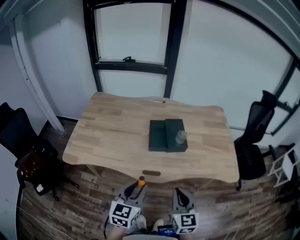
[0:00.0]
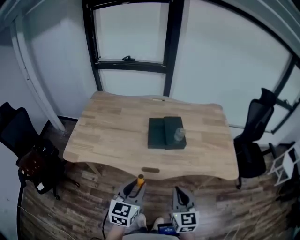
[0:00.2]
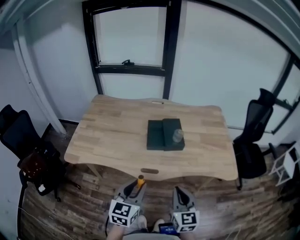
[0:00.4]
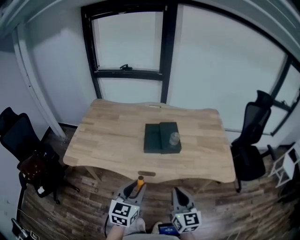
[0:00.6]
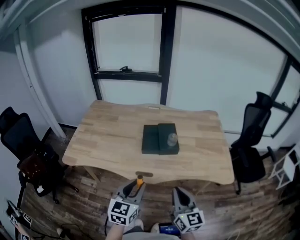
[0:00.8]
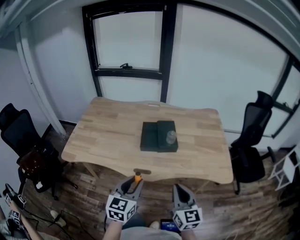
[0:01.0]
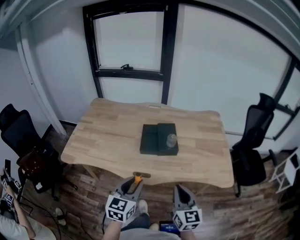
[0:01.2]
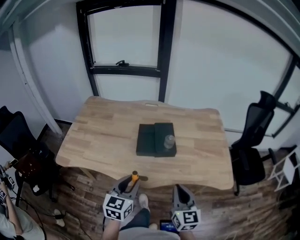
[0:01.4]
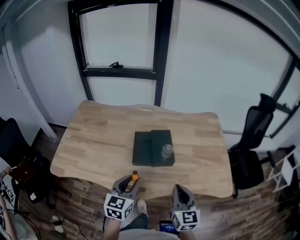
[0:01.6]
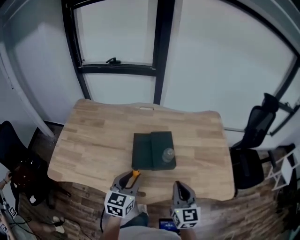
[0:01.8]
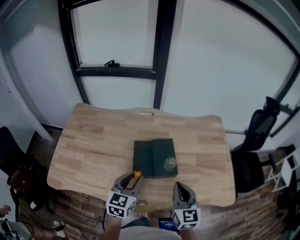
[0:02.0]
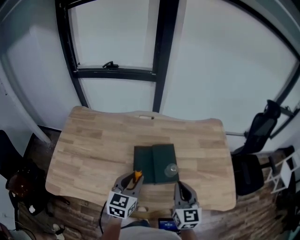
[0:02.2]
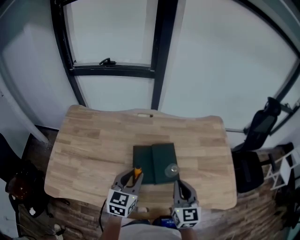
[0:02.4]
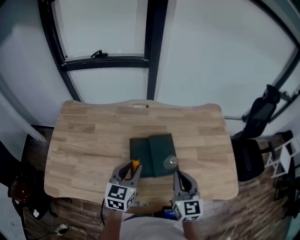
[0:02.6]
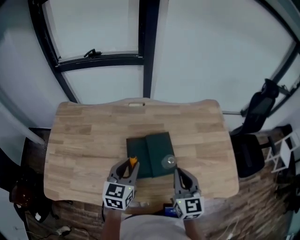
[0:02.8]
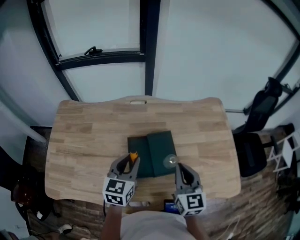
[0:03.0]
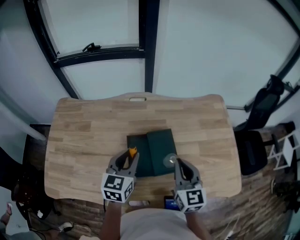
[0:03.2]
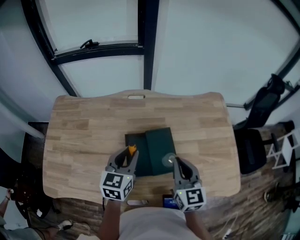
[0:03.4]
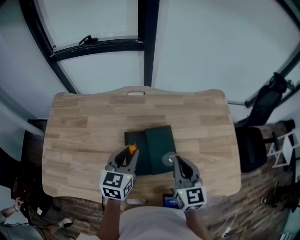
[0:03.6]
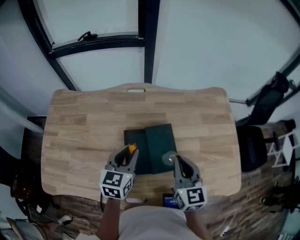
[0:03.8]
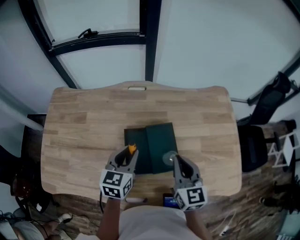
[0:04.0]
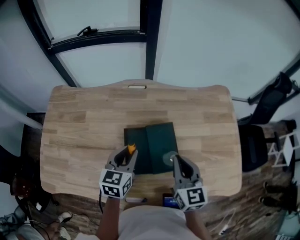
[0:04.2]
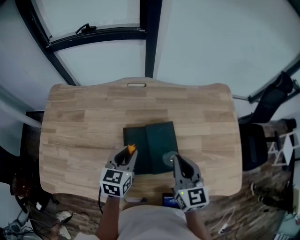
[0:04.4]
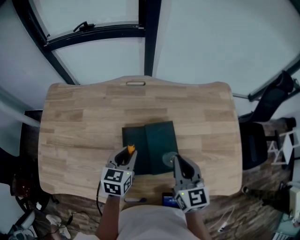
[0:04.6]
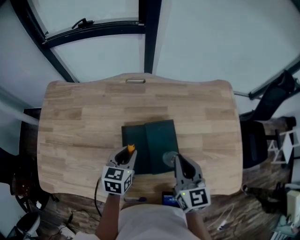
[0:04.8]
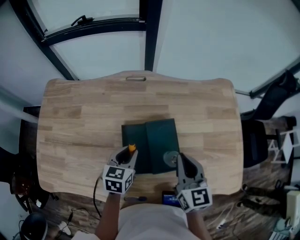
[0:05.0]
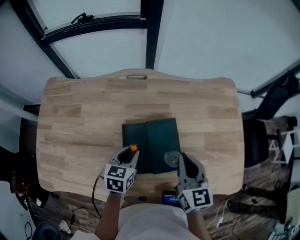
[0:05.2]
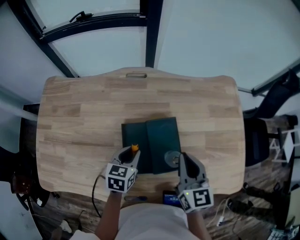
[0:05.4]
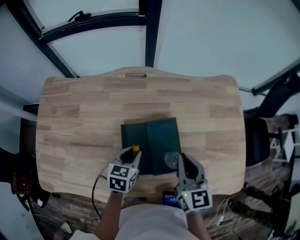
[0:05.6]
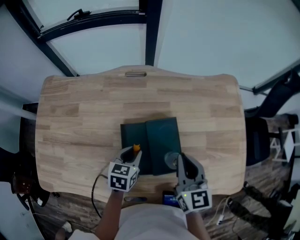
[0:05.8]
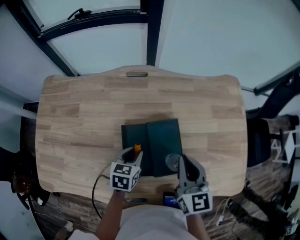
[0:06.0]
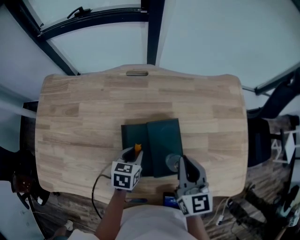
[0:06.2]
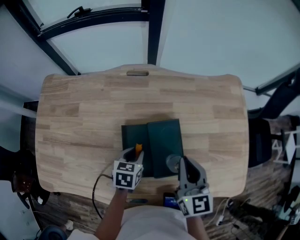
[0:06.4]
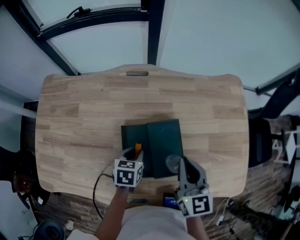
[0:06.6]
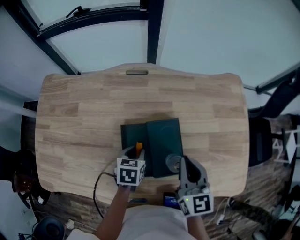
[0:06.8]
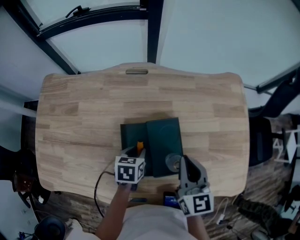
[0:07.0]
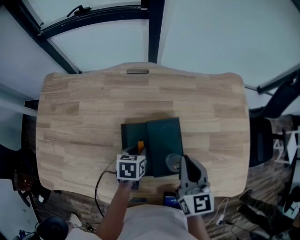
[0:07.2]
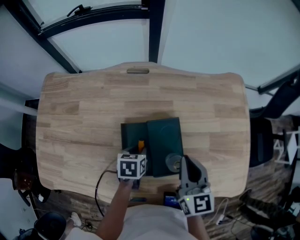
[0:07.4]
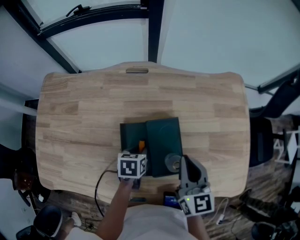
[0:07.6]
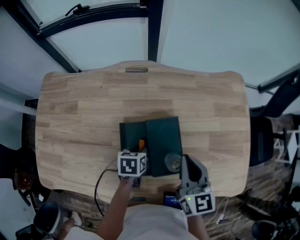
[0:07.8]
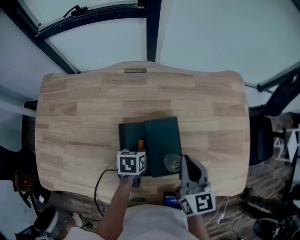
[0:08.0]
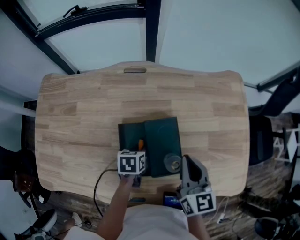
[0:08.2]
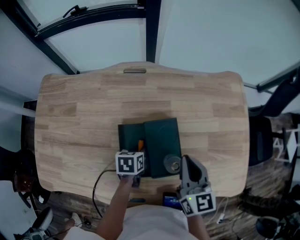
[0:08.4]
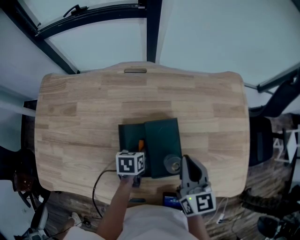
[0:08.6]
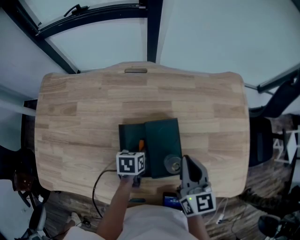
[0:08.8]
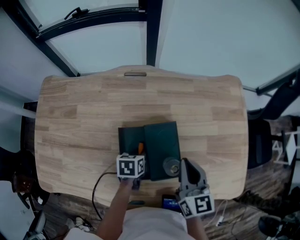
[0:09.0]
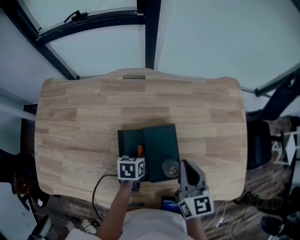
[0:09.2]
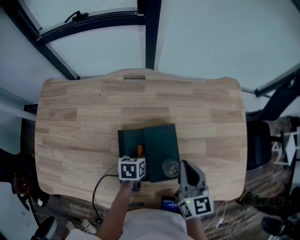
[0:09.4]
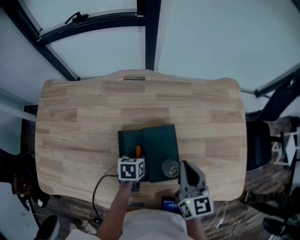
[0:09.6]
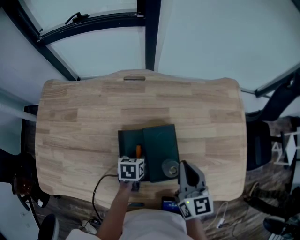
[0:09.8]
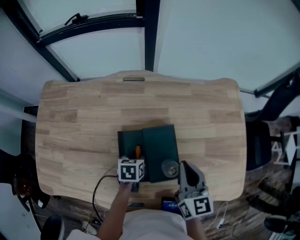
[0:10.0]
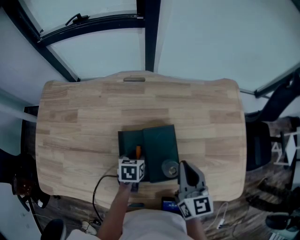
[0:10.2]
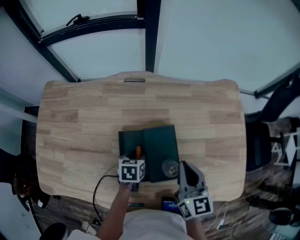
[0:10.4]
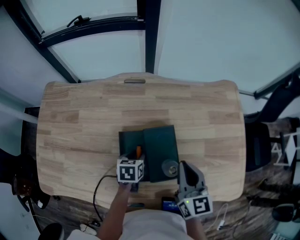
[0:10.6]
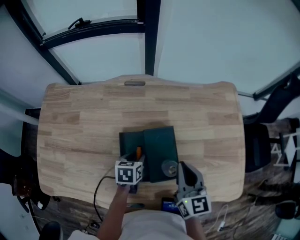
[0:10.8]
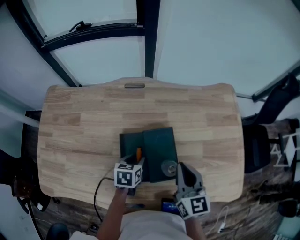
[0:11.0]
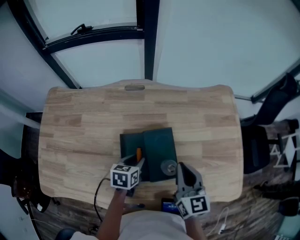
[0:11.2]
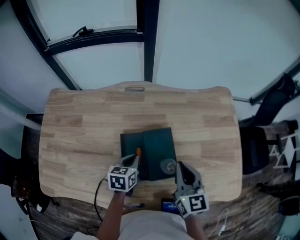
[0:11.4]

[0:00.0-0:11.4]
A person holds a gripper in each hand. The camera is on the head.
0:00.0 to 0:01.4: The right gripper travels to the right and forward by approximately 10 cm; the left gripper travels forward and to the right by approximately 10 cm.
0:01.4 to 0:02.8: The two grippers go some 25 cm forward.
0:02.8 to 0:04.2: The left gripper shifts about 10 cm downward and forward. The right gripper travels forward by about 5 cm.
0:04.2 to 0:05.6: The left gripper goes about 10 cm downward.
0:05.6 to 0:07.2: The left gripper shifts by approximately 5 cm, and swivels some 20 degrees.
0:07.2 to 0:10.0: The grippers stay close to where they were, moving slightly.
0:10.0 to 0:11.4: The left gripper is displaced upward by some 10 cm, and closes.

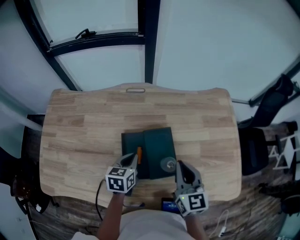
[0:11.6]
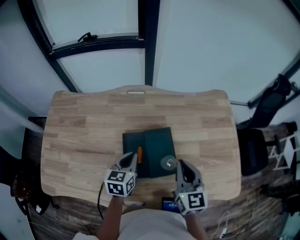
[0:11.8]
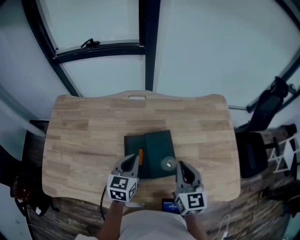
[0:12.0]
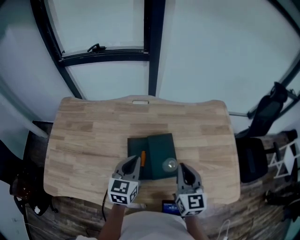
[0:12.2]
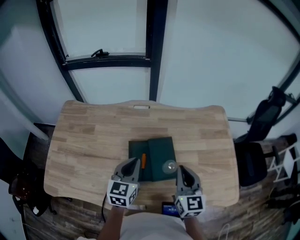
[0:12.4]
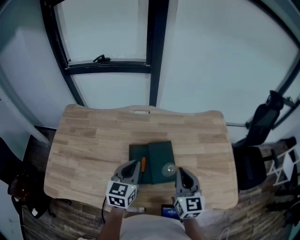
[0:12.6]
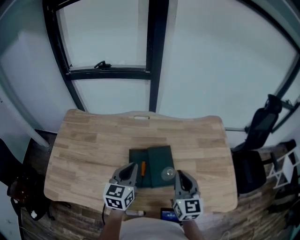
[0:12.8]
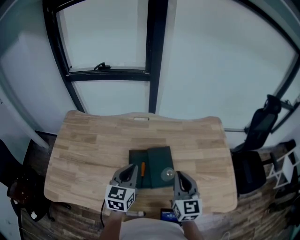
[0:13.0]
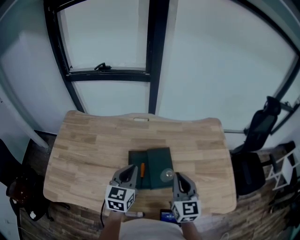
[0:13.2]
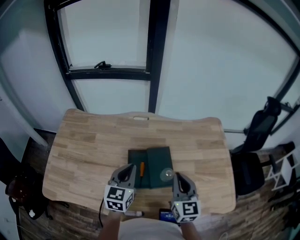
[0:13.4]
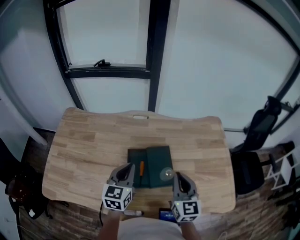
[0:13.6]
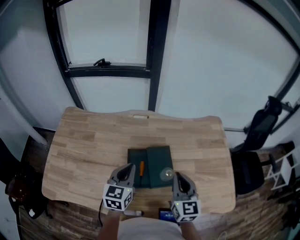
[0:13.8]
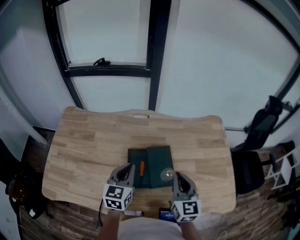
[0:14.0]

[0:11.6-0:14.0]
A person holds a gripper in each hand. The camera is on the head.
0:11.6 to 0:12.8: The right gripper ends up about 5 cm from where it was. Meanwhile the left gripper moves upward, approximately 15 cm, and turns by about 30 degrees.
0:12.8 to 0:14.0: The grippers make only small movements.

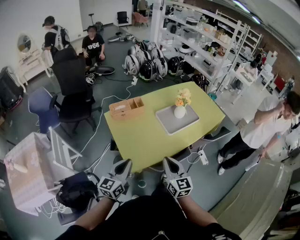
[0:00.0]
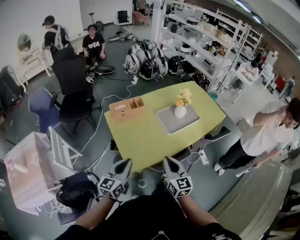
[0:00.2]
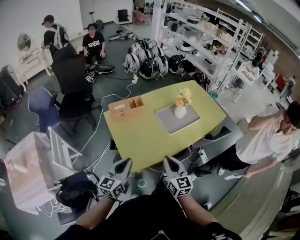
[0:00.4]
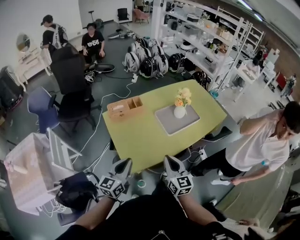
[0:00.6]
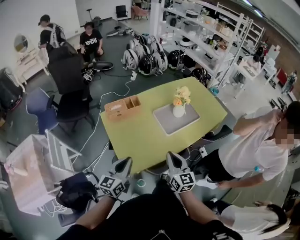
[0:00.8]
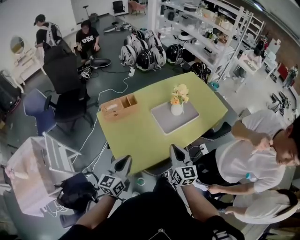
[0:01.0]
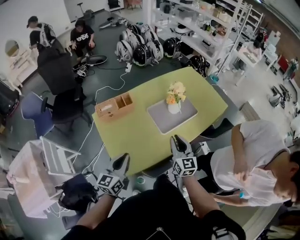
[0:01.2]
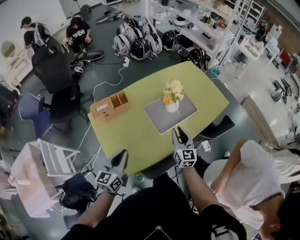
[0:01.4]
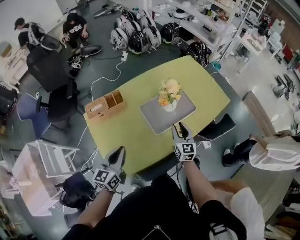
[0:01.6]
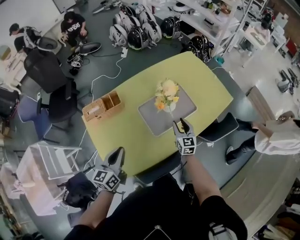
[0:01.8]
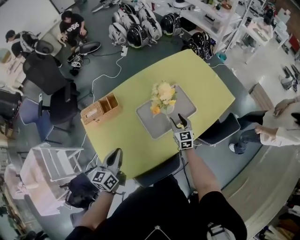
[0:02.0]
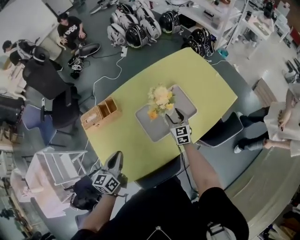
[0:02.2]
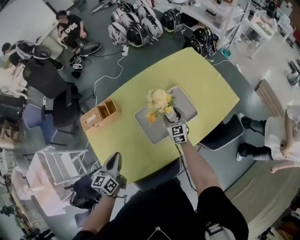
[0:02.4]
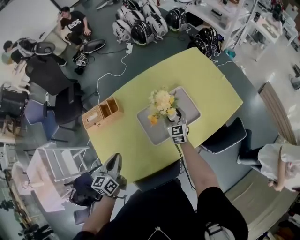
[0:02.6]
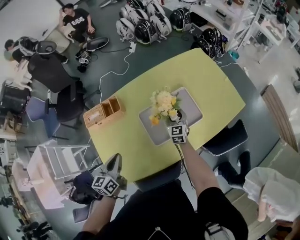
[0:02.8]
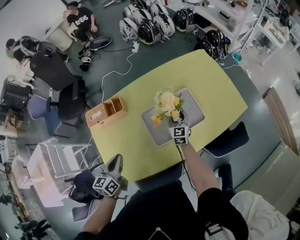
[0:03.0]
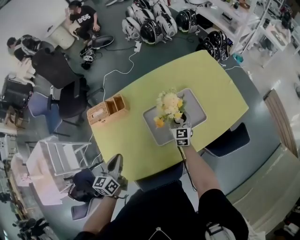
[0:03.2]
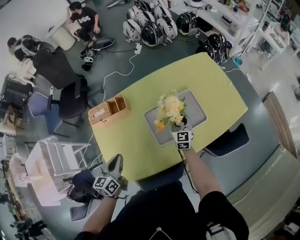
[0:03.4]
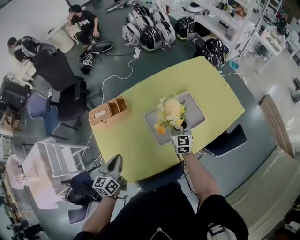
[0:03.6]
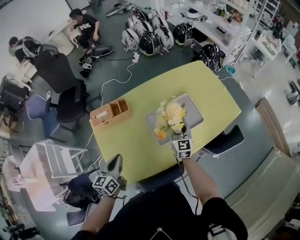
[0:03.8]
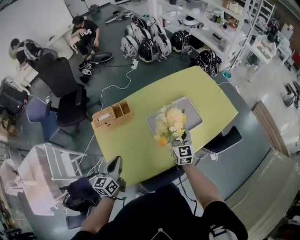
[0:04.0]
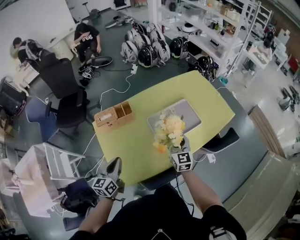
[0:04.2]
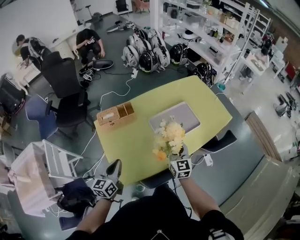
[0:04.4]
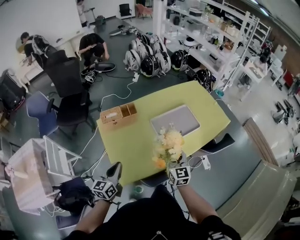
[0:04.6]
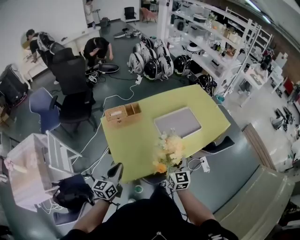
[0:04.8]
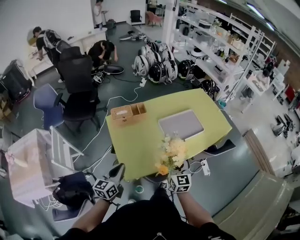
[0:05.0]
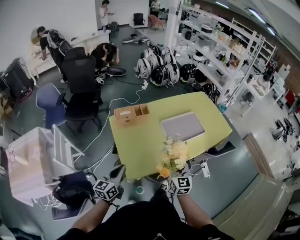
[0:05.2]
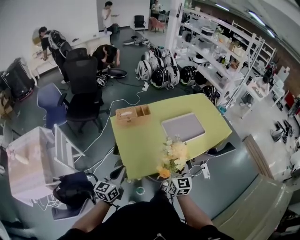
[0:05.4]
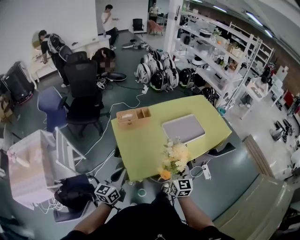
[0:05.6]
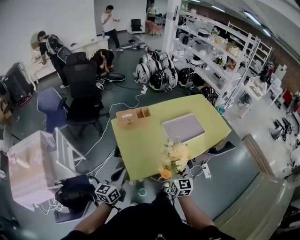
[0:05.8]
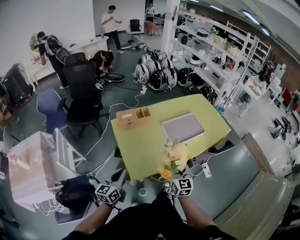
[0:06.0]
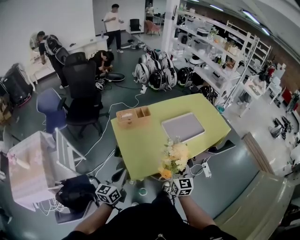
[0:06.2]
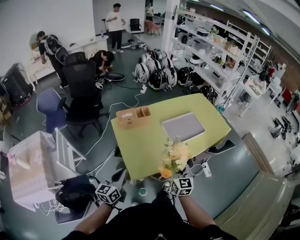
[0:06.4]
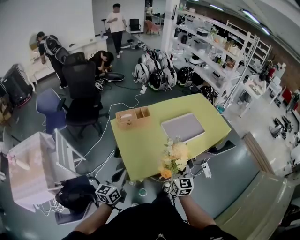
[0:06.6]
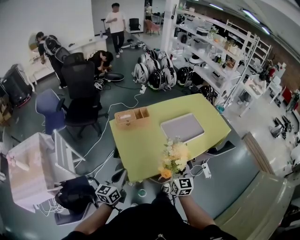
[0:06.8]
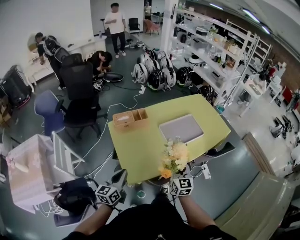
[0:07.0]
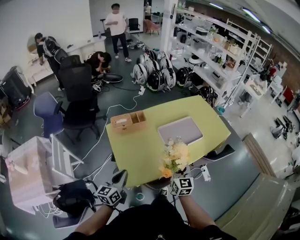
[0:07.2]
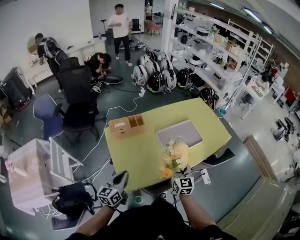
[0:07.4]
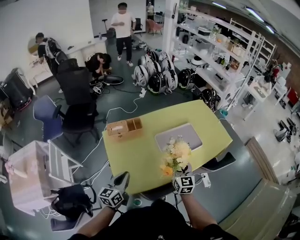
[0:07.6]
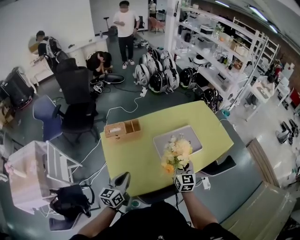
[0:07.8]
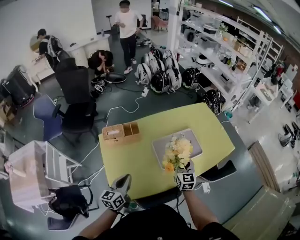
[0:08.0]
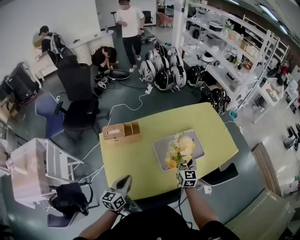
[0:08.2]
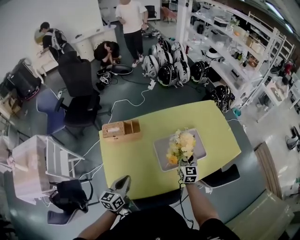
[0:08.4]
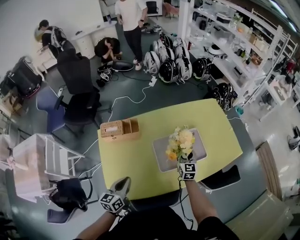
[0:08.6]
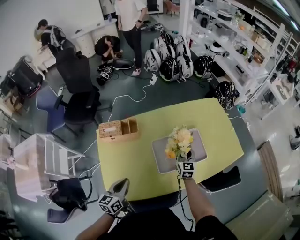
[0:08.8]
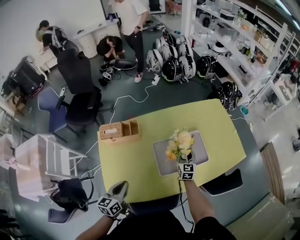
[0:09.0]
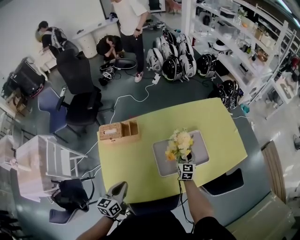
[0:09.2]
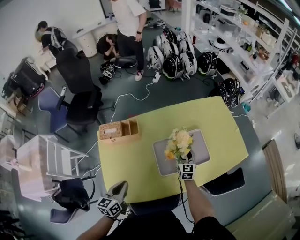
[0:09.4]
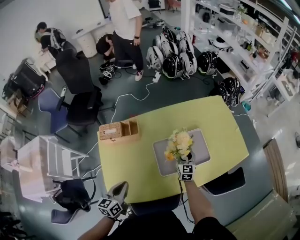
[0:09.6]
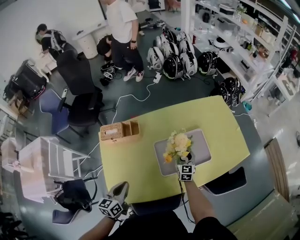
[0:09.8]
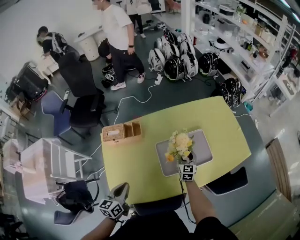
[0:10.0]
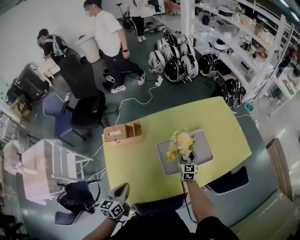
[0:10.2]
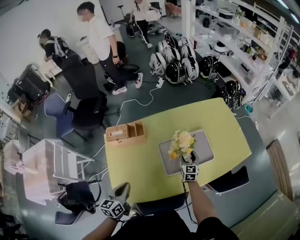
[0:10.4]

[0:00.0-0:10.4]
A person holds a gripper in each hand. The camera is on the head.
0:00.0 to 0:01.4: The left gripper moves forward and to the right, approximately 25 cm. Meanwhile the right gripper travels forward and to the right by some 35 cm, and opens its fingers.
0:01.4 to 0:03.0: The left gripper goes about 15 cm forward and downward, and changes its angle by about 20 degrees, while the right gripper travels forward and downward by roughly 30 cm, and opens up.
0:03.0 to 0:04.4: The left gripper goes approximately 20 cm backward and to the left. Meanwhile the right gripper is displaced backward, upward and to the left by approximately 35 cm.
0:04.4 to 0:06.0: The grippers both shift backward and to the left by some 25 cm.
0:06.0 to 0:07.4: The two grippers go about 15 cm forward and to the right.
0:07.4 to 0:09.0: The right gripper heads forward and downward, covering approximately 40 cm, while the left gripper goes approximately 20 cm forward, to the right and downward.
0:09.0 to 0:10.4: The grippers make only small movements.
